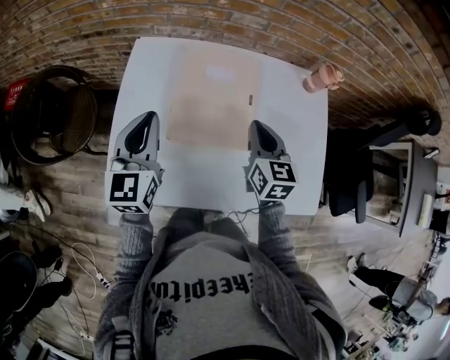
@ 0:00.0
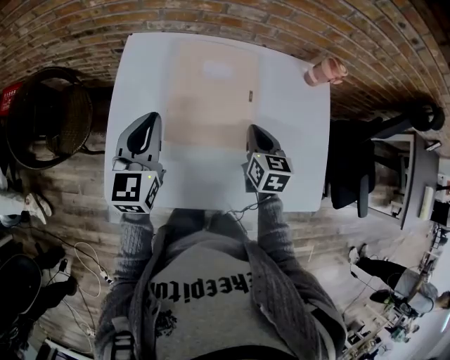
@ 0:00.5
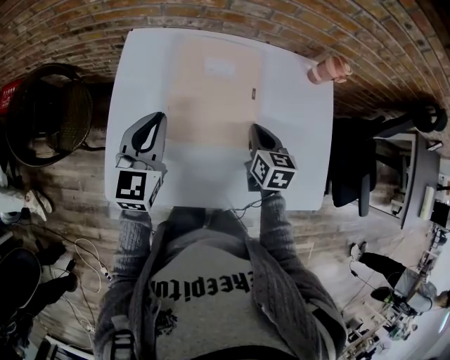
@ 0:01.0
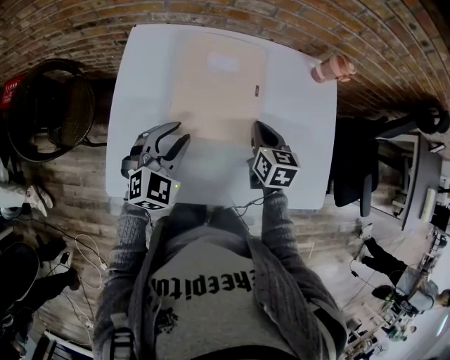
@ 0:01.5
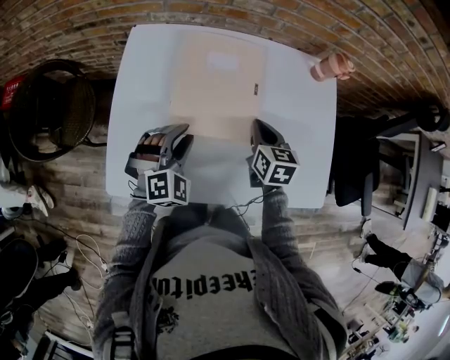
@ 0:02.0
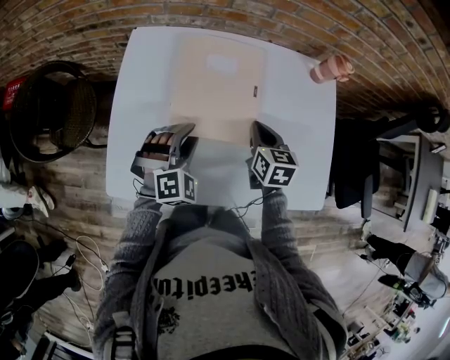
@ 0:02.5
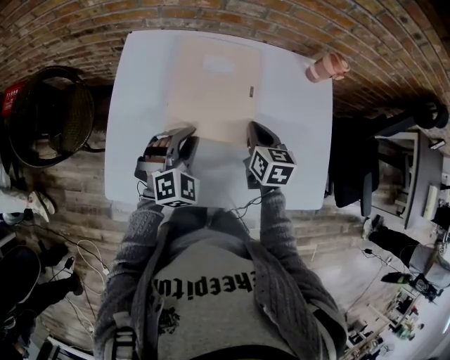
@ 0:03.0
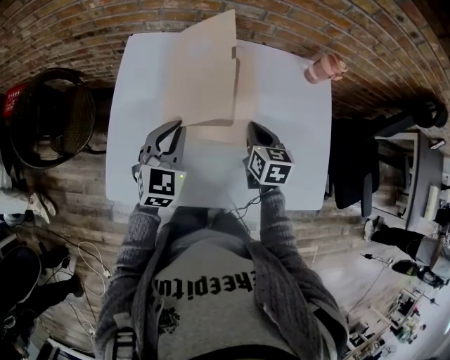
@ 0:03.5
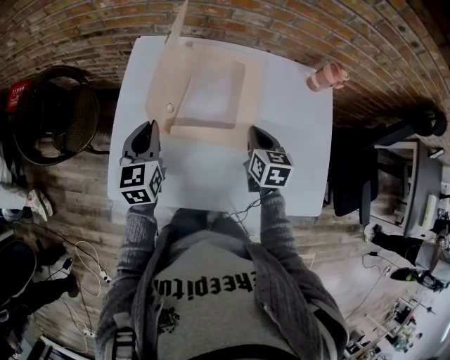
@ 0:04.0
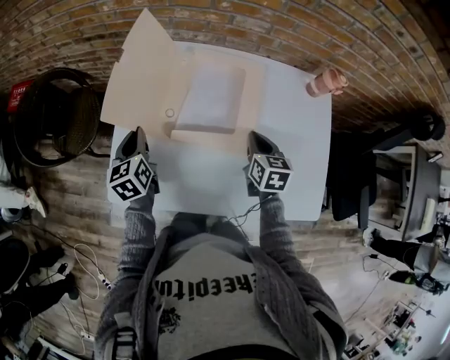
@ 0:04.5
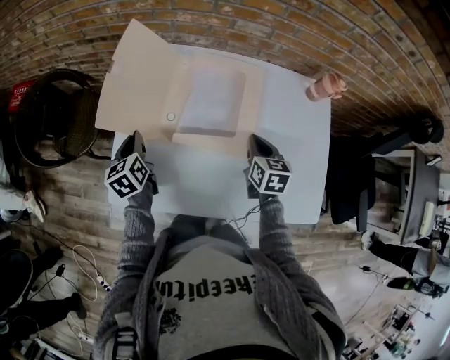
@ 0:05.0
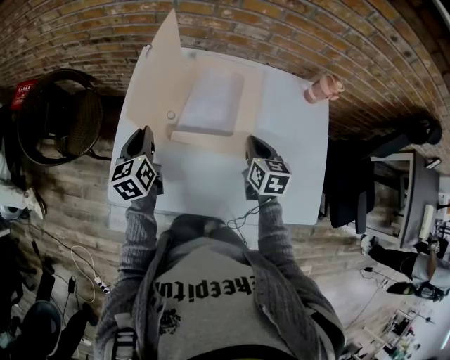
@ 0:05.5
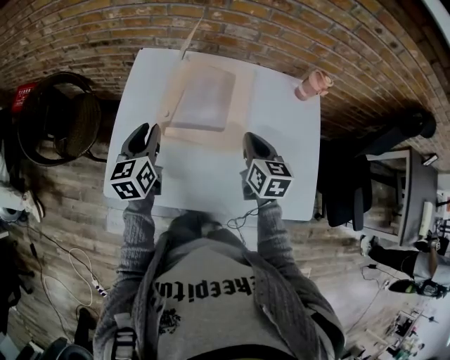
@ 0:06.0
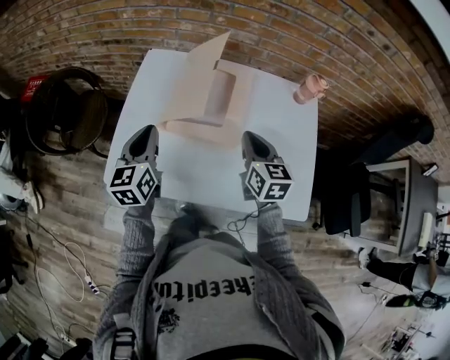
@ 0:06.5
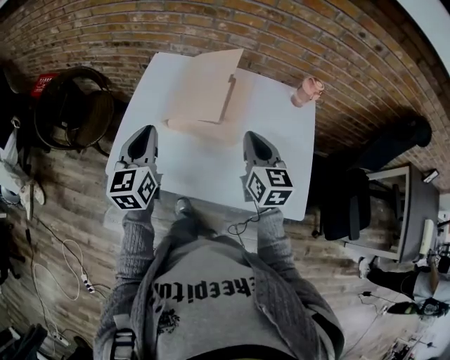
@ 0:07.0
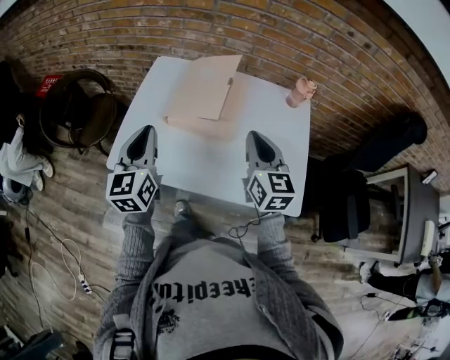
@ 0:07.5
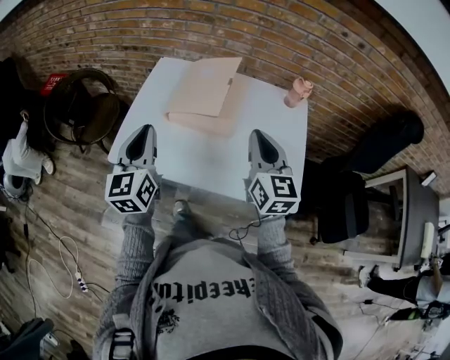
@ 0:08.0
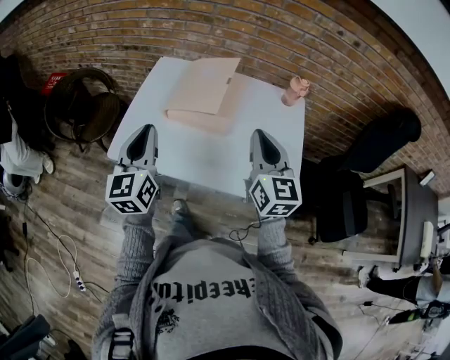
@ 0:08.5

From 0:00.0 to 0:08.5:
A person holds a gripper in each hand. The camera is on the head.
From 0:00.0 to 0:02.0: The right gripper moves downward, about 10 cm; the left gripper goes some 20 cm downward and to the right, rolls clockwise, seen from behind, by some 60 degrees, and opens.
From 0:02.0 to 0:04.0: The left gripper moves to the left and upward, roughly 10 cm, rolls counterclockwise, seen from behind, by some 60 degrees, and closes its fingers.
From 0:04.0 to 0:06.5: The left gripper shifts roughly 10 cm backward and upward; the right gripper travels upward and backward by some 10 cm.
From 0:06.5 to 0:08.5: Both grippers travel together backward and upward, about 20 cm. The right gripper rotates approximately 20 degrees.

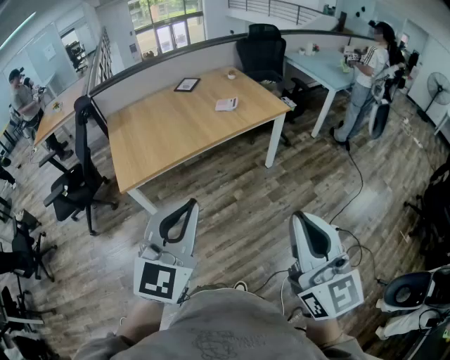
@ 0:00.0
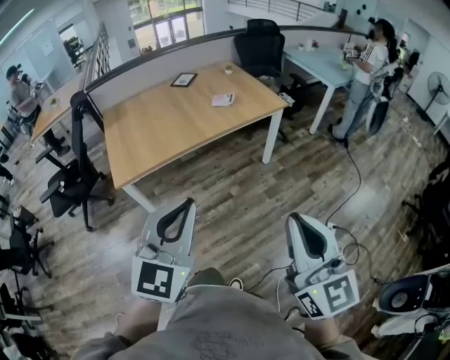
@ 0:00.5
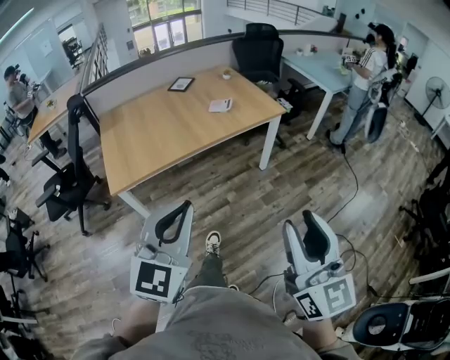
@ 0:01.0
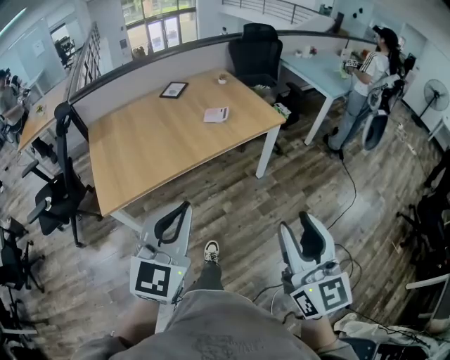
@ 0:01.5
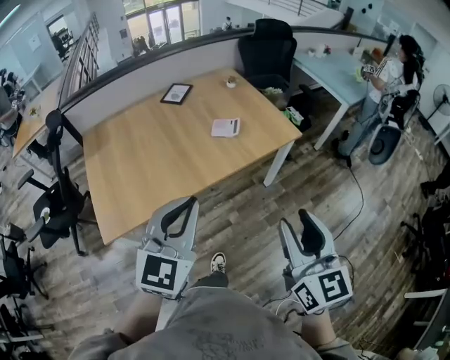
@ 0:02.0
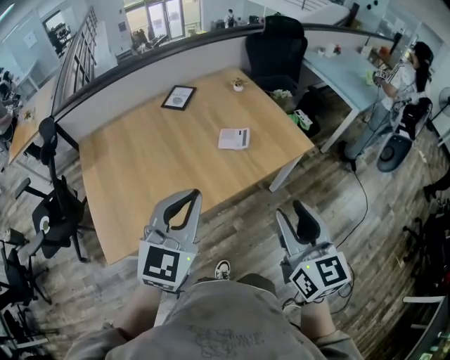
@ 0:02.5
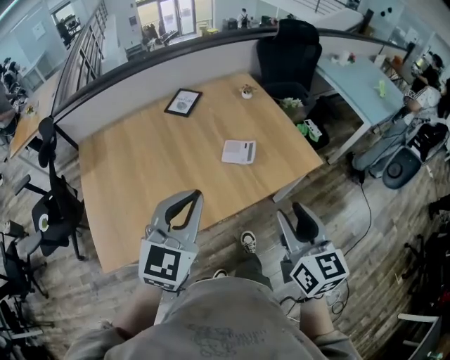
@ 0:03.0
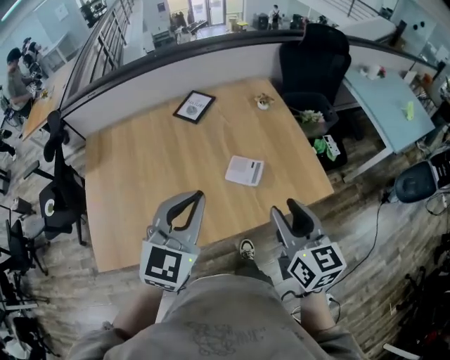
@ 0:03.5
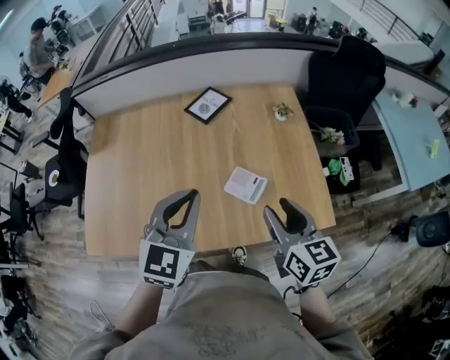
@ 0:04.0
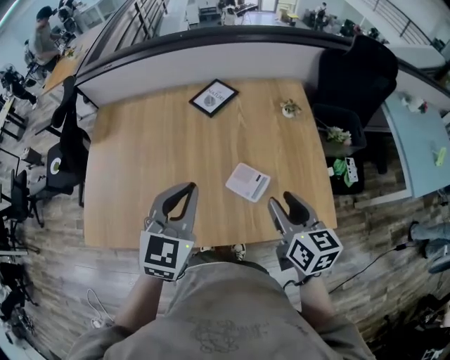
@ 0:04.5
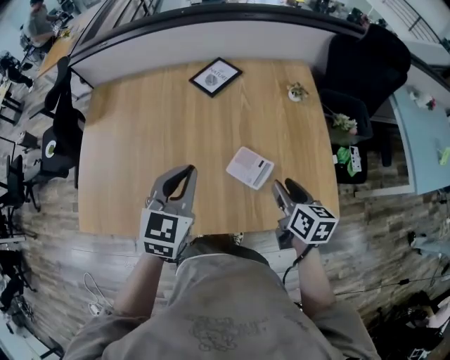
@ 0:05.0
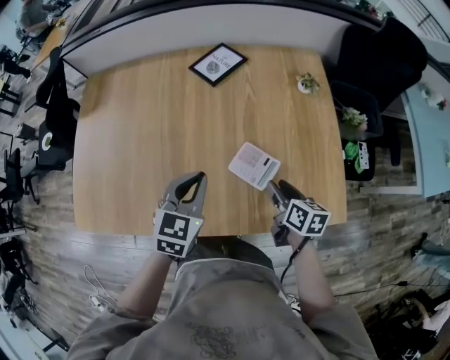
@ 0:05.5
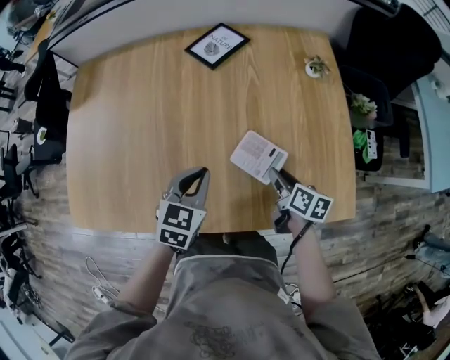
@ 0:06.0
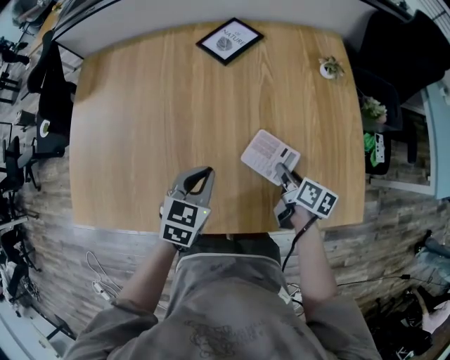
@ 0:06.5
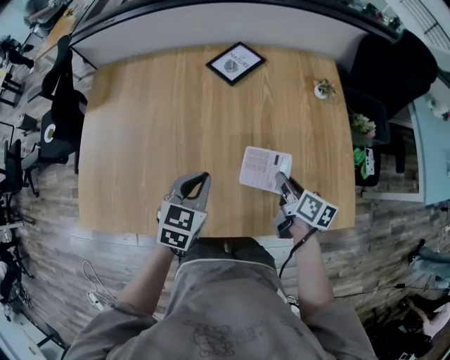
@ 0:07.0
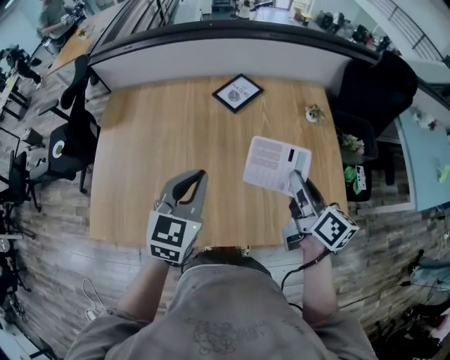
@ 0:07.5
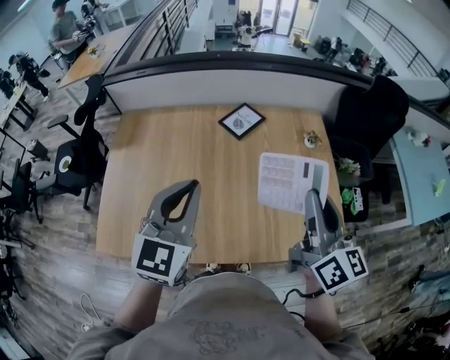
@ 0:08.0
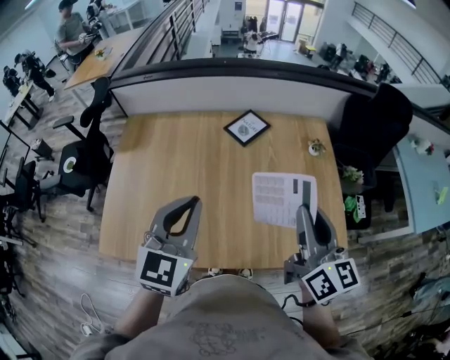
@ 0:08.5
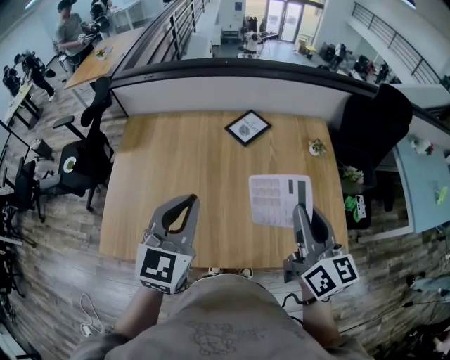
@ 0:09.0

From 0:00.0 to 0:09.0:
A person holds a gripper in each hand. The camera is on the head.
From 0:00.0 to 0:02.0: The grippers both shift forward by roughly 35 cm. The right gripper opens up.
From 0:02.0 to 0:04.5: Both grippers are carried about 50 cm. The right gripper changes its angle by about 40 degrees. Meanwhile the left gripper swivels approximately 30 degrees.
From 0:04.5 to 0:07.0: The right gripper travels downward and forward by about 20 cm, turns by some 30 degrees, and closes. Meanwhile the left gripper moves downward, about 20 cm, and changes its angle by some 20 degrees.
From 0:07.0 to 0:09.0: Both grippers travel together upward, approximately 30 cm. The left gripper swivels some 30 degrees. The right gripper turns by approximately 40 degrees.

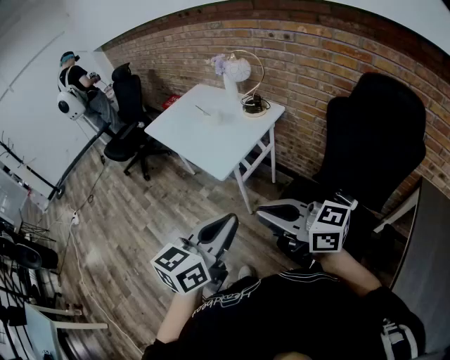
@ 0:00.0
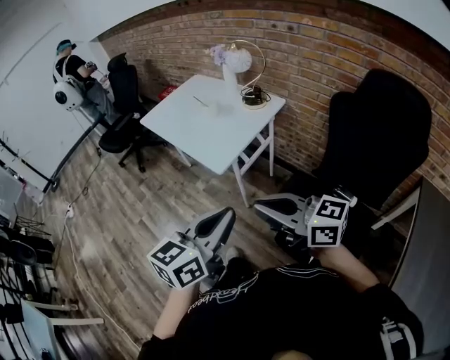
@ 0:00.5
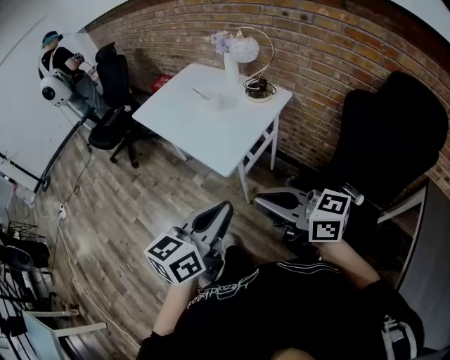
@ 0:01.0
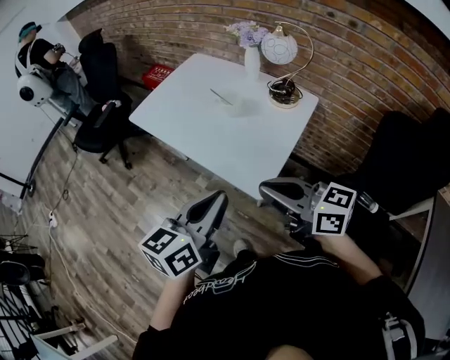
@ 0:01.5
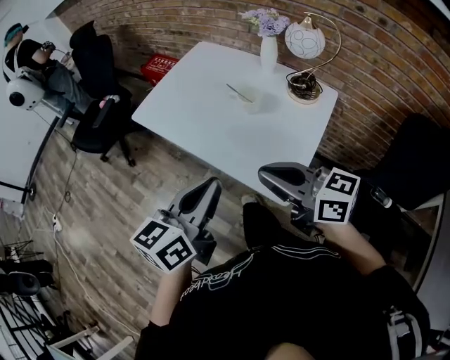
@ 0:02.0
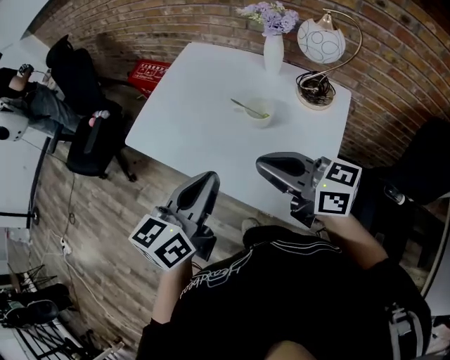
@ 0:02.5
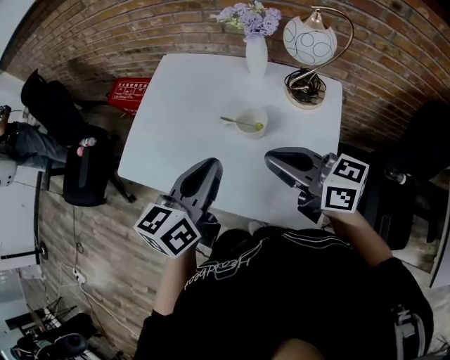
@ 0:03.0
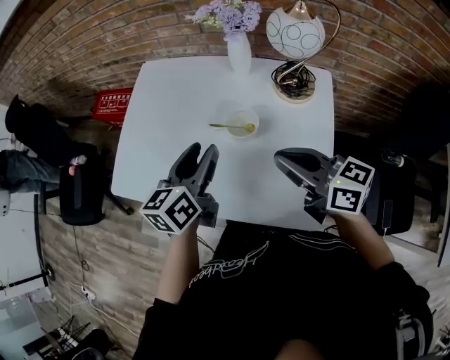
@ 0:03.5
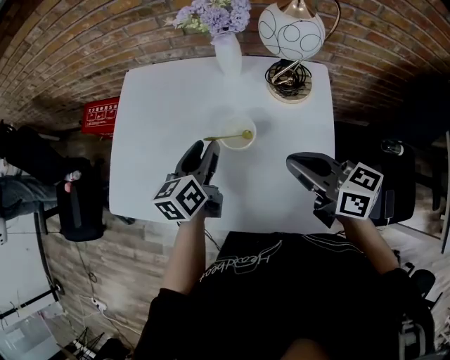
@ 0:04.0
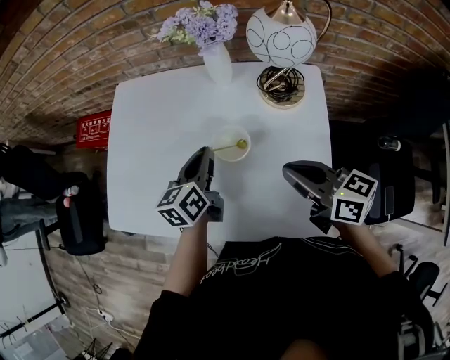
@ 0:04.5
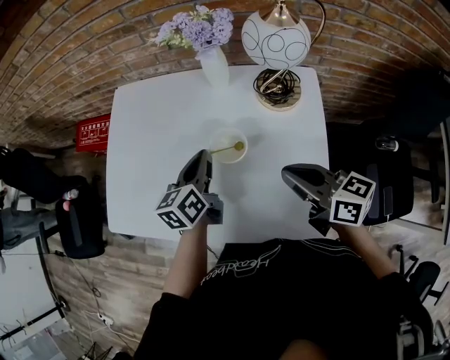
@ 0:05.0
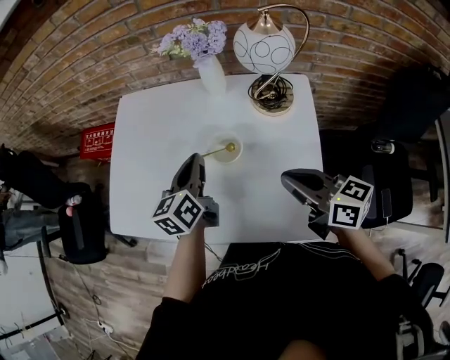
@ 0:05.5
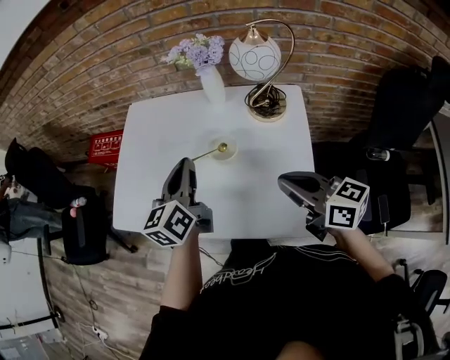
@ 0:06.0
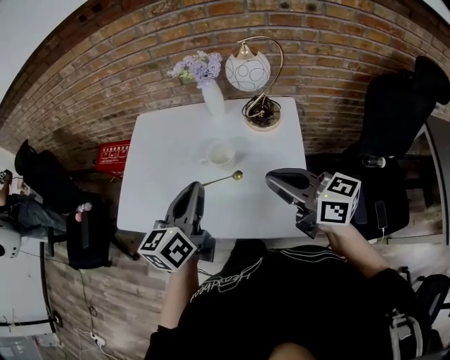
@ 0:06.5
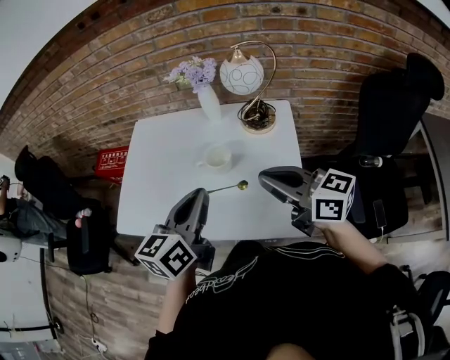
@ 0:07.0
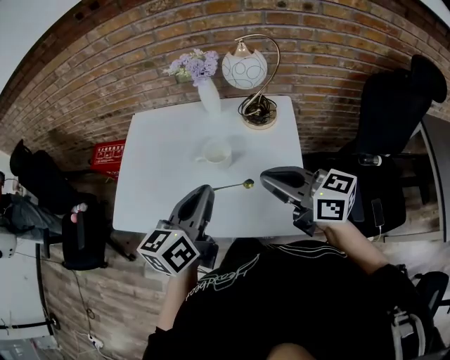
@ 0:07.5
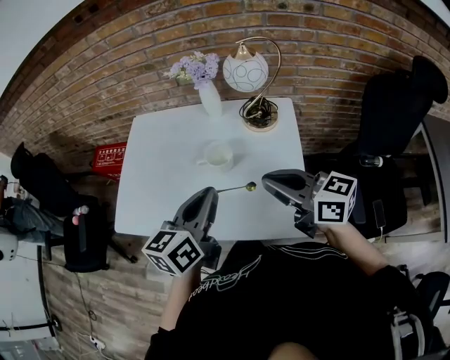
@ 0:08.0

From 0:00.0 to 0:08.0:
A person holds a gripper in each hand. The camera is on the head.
From 0:00.0 to 0:02.0: The pair of grippers is taken forward and to the left, some 50 cm.
From 0:02.0 to 0:04.0: The right gripper moves forward and downward, about 25 cm, and turns by some 40 degrees. The left gripper shifts approximately 40 cm forward and downward, and opens up.
From 0:04.0 to 0:06.0: The left gripper heads upward, covering approximately 10 cm, and closes its fingers. The right gripper travels backward by roughly 5 cm.
From 0:06.0 to 0:08.0: The left gripper goes some 10 cm backward, while the right gripper heads upward, covering approximately 5 cm.

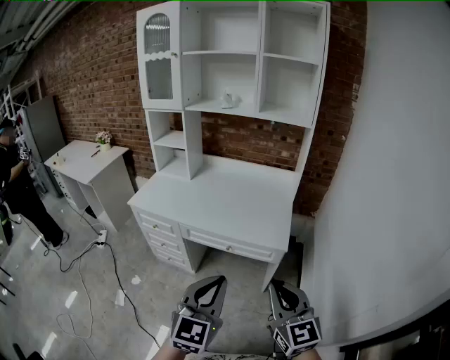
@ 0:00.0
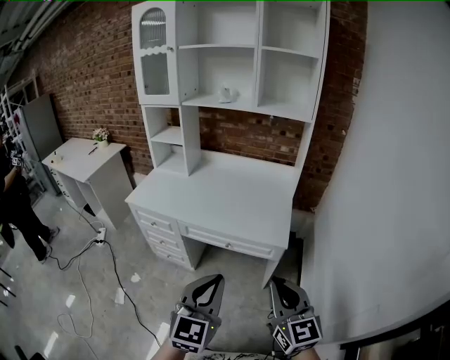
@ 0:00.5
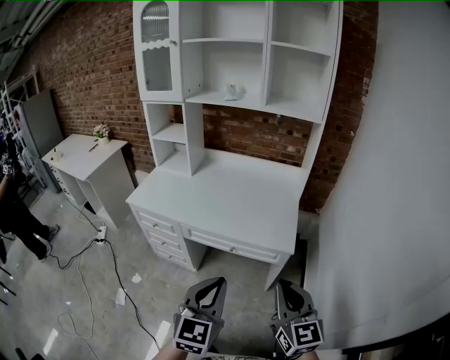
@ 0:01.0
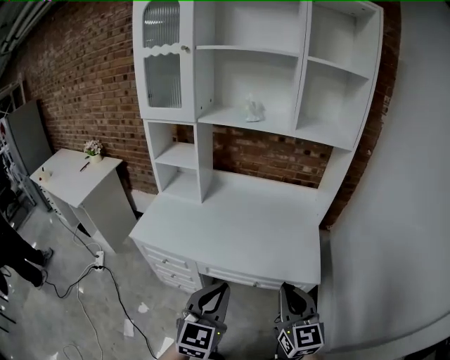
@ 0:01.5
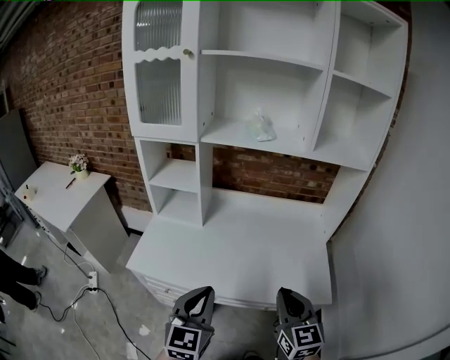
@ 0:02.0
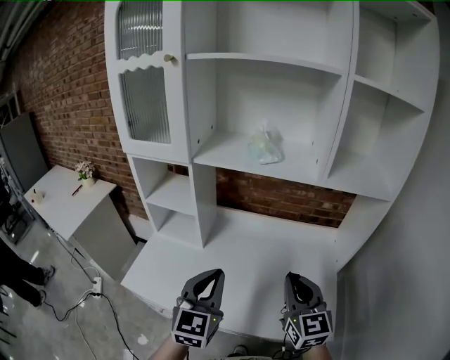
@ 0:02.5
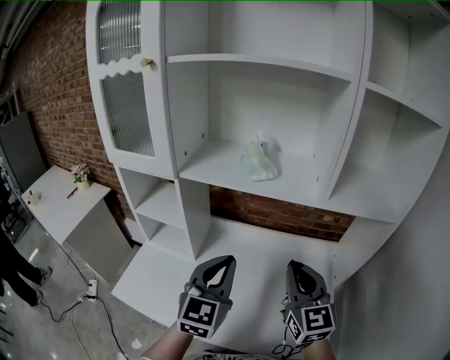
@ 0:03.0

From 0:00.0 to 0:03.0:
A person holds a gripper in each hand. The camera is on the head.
From 0:00.0 to 0:01.5: The two grippers go roughly 25 cm forward and to the left.
From 0:01.5 to 0:03.0: The two grippers travel together, forward, approximately 40 cm.
